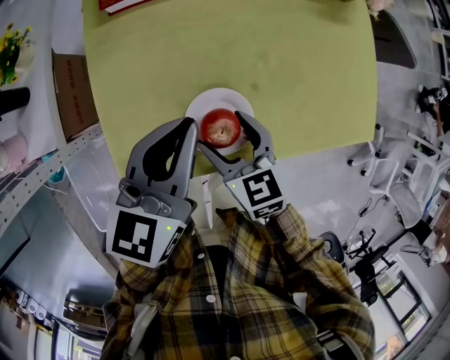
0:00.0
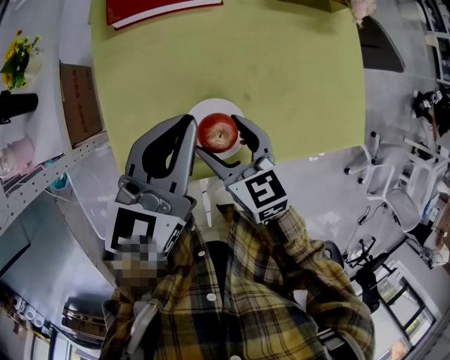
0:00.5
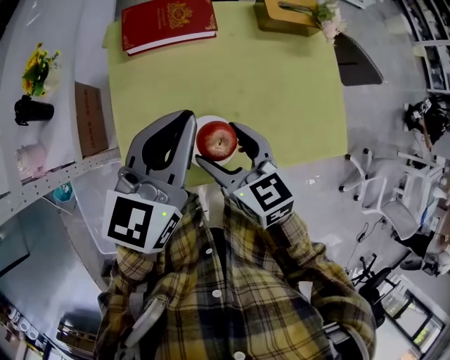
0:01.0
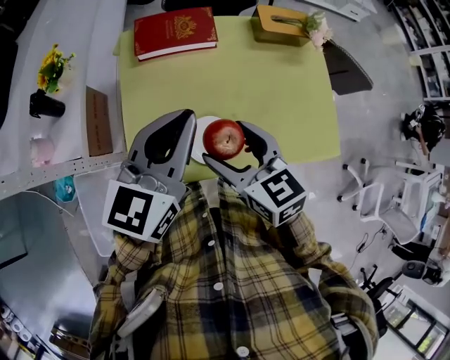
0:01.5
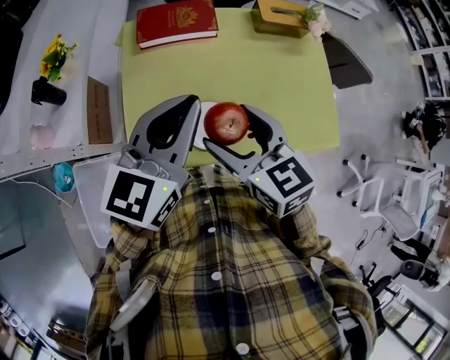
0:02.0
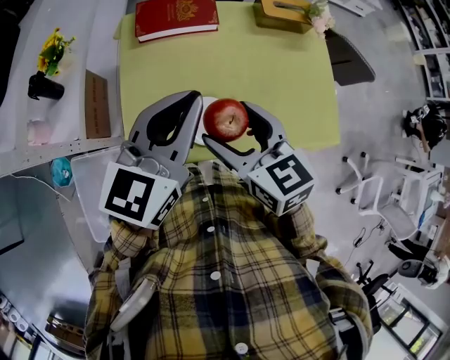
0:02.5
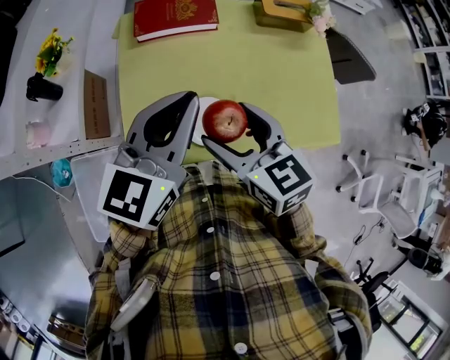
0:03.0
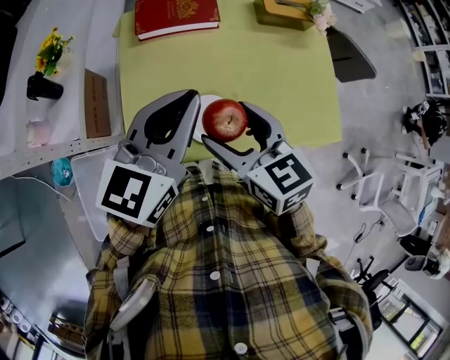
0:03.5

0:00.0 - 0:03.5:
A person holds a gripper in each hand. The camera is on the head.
0:00.0 - 0:02.0: Both grippers travel together upward, some 20 cm.
0:02.0 - 0:03.5: The grippers stay close to where they were, moving slightly.

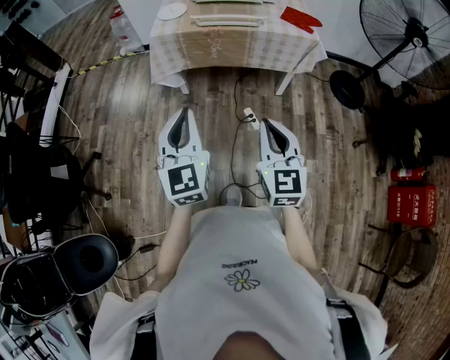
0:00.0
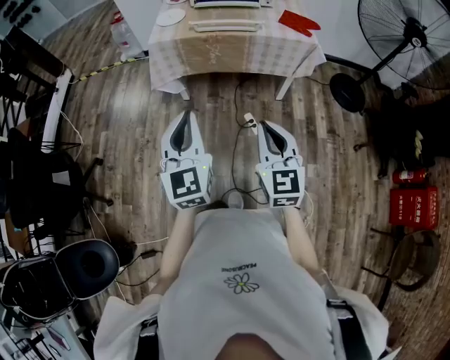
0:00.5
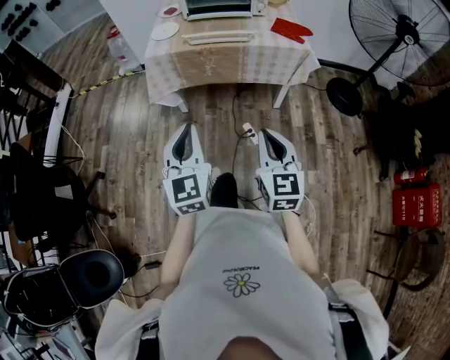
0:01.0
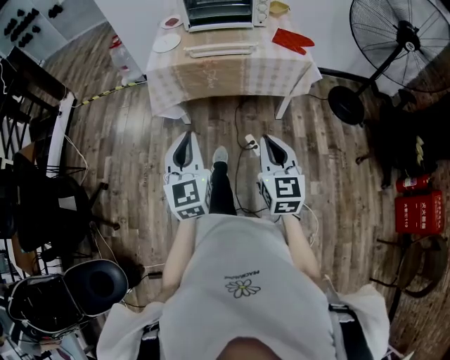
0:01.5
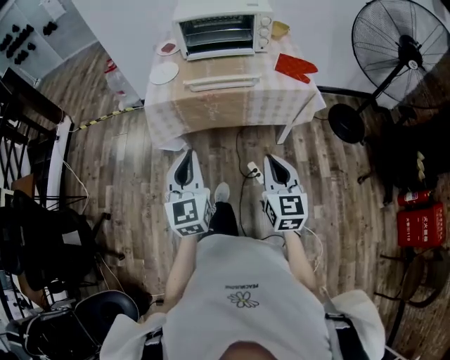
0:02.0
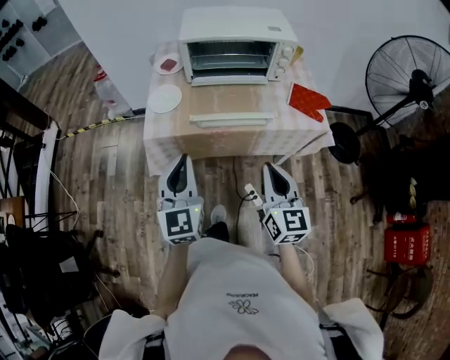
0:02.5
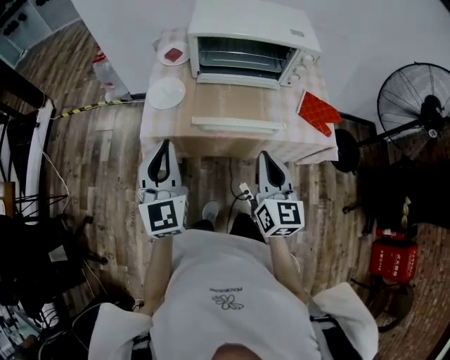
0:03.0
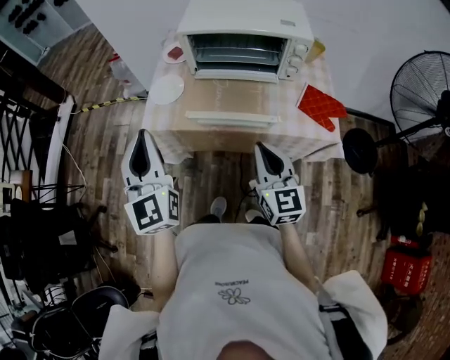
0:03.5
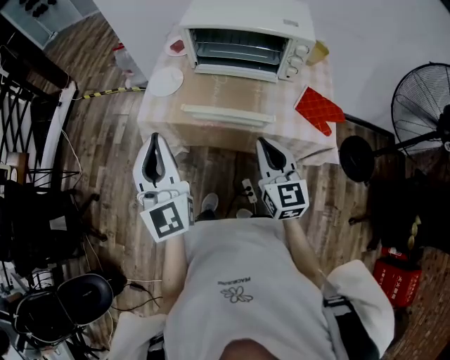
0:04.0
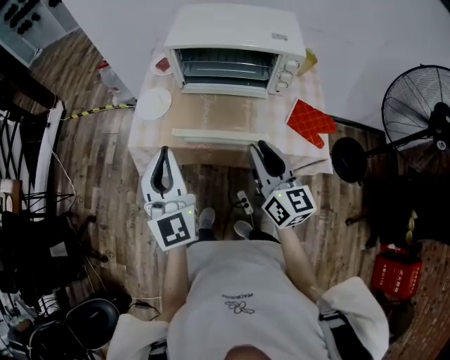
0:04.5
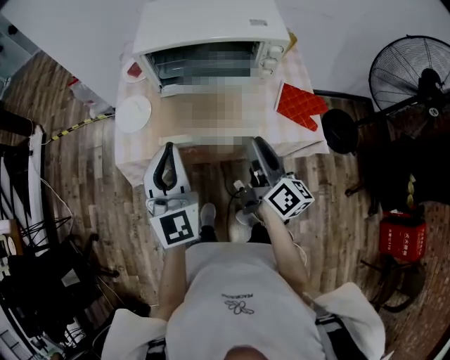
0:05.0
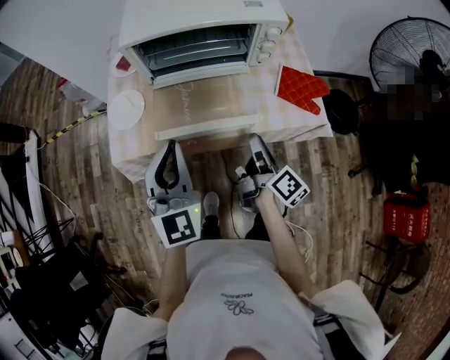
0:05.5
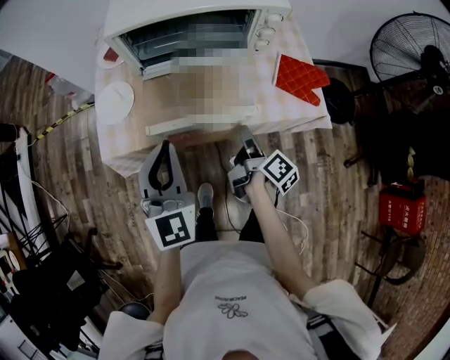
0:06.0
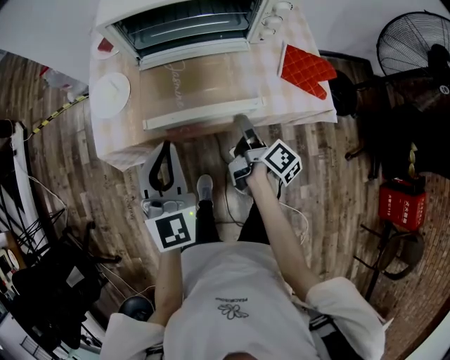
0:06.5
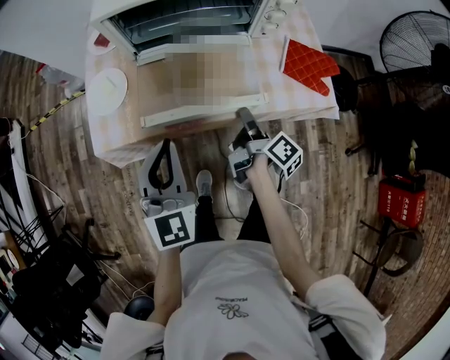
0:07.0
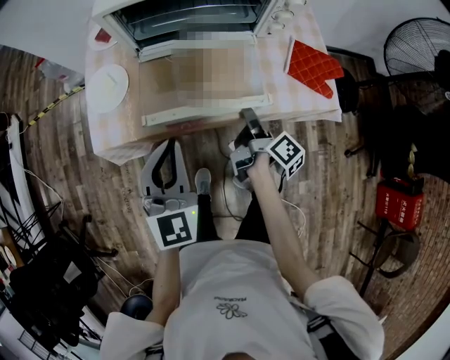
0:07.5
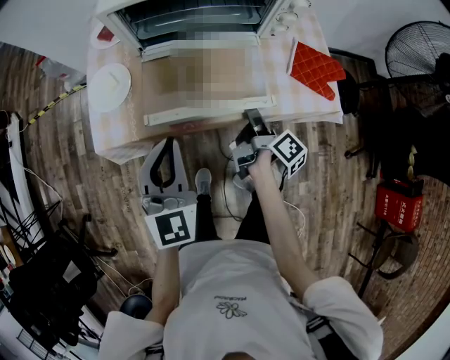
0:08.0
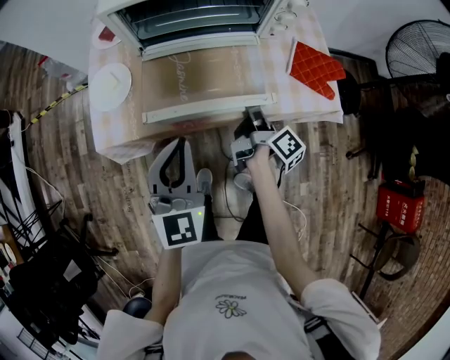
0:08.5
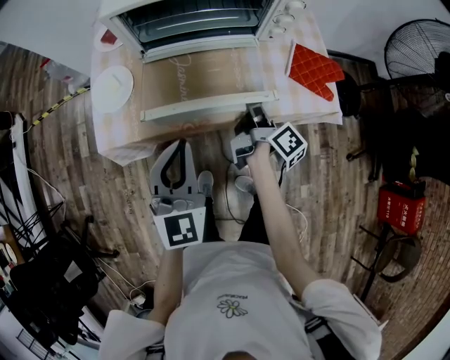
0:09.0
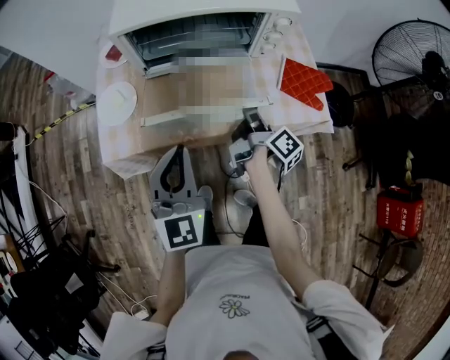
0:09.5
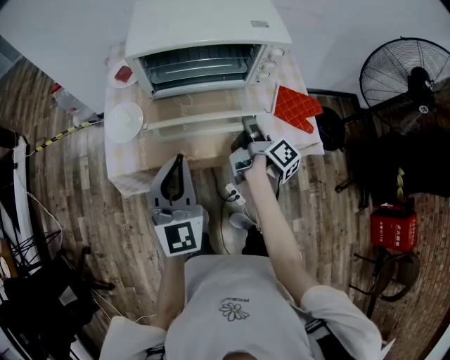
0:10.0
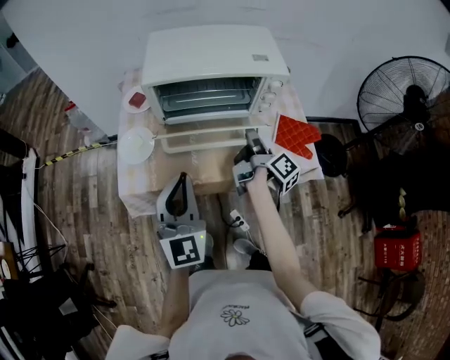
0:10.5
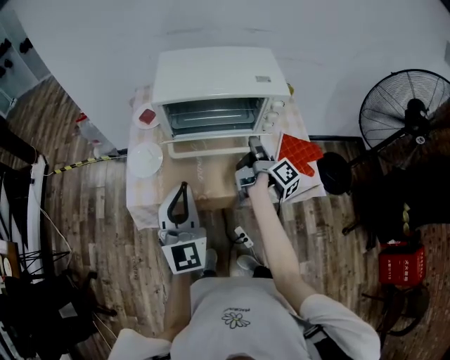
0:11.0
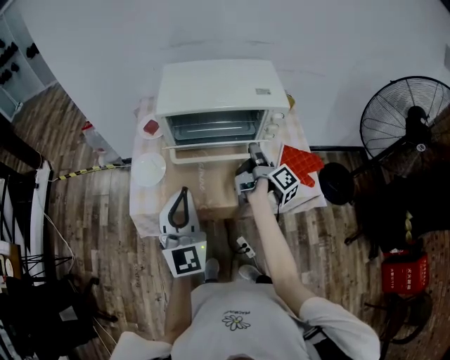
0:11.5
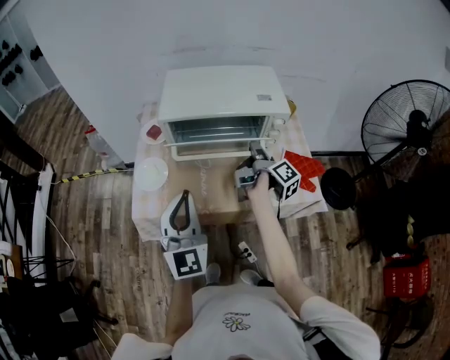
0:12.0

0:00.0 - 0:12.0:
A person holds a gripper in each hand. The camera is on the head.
0:00.0 - 0:02.0: The grippers both shift forward by some 15 cm.
0:02.0 - 0:04.0: The right gripper travels forward by roughly 25 cm. Meanwhile the left gripper is displaced forward and upward by approximately 25 cm, and rotates some 30 degrees.
0:04.0 - 0:06.0: The right gripper goes some 15 cm downward, rolls clockwise, seen from behind, by approximately 80 degrees, and opens its fingers, while the left gripper moves roughly 15 cm, and turns by some 30 degrees.
0:06.0 - 0:08.0: The left gripper shifts by some 5 cm. The right gripper changes place by about 5 cm.
0:08.0 - 0:10.0: The right gripper travels upward and forward by approximately 10 cm, while the left gripper shifts approximately 5 cm upward.
0:10.0 - 0:12.0: The left gripper moves upward, roughly 5 cm, while the right gripper moves upward and forward, about 10 cm.

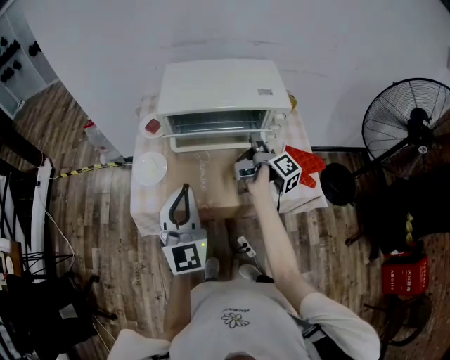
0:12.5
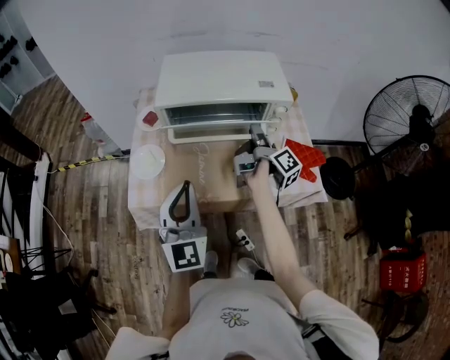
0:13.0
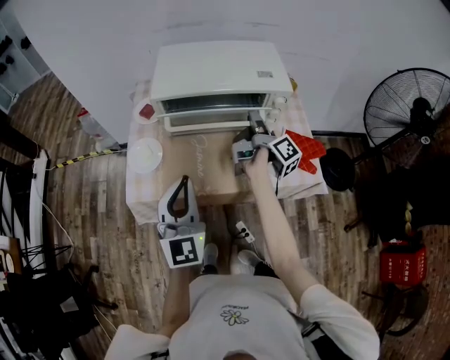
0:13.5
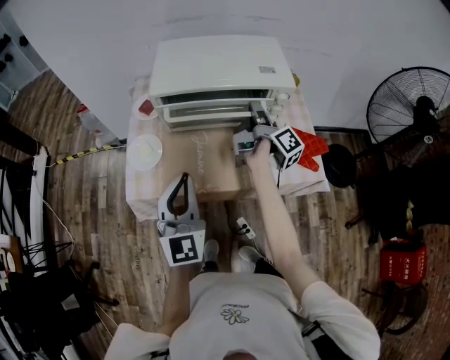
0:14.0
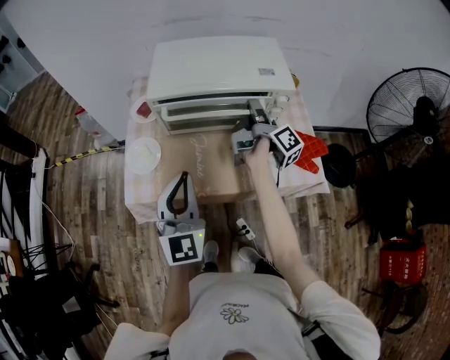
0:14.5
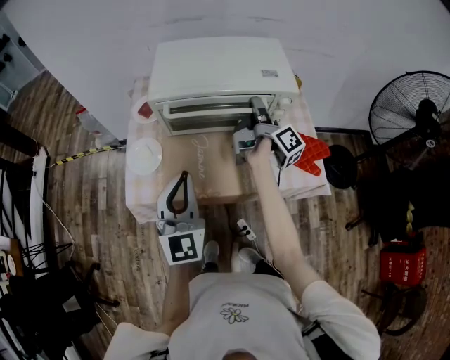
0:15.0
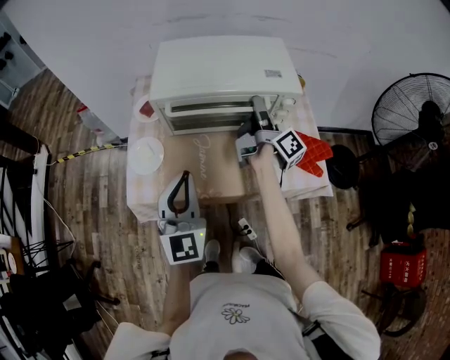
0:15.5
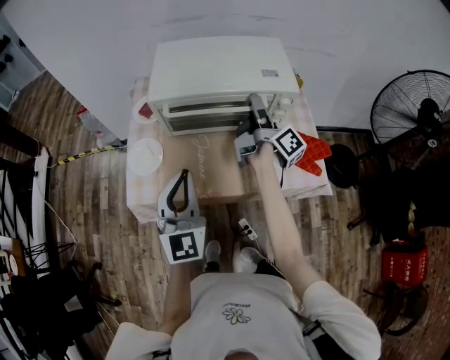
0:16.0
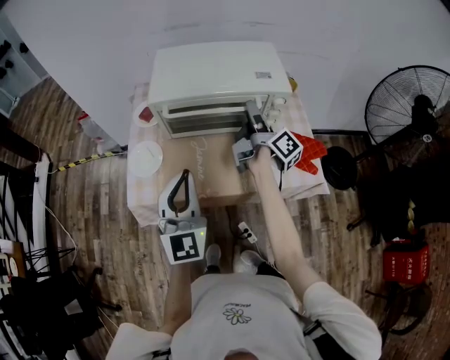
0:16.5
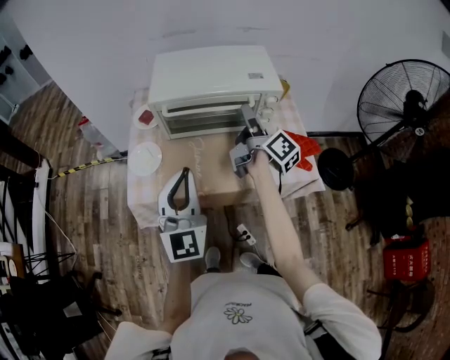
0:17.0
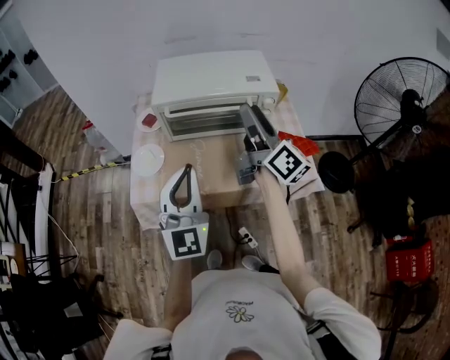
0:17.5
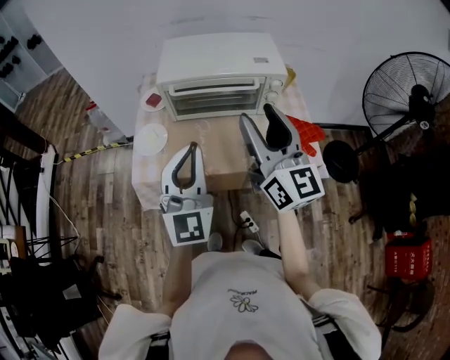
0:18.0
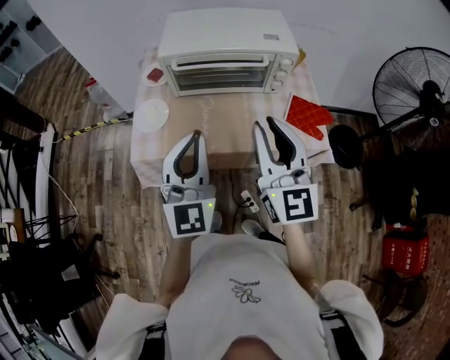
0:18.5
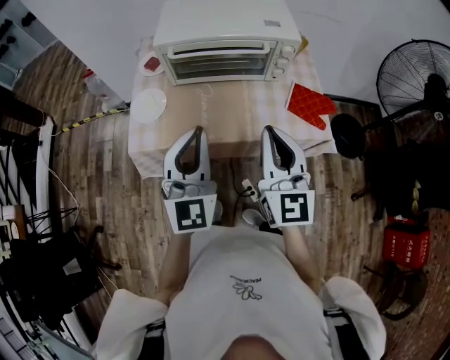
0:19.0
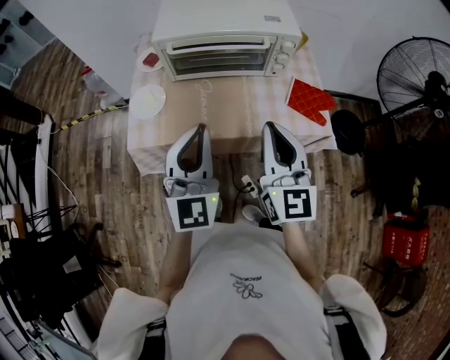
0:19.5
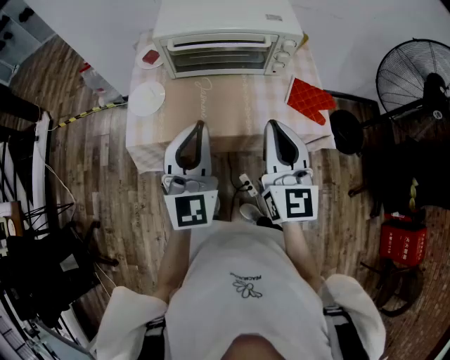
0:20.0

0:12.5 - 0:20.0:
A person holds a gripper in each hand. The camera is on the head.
0:12.5 - 0:14.5: The right gripper shifts by roughly 5 cm.
0:14.5 - 0:16.5: The right gripper opens its fingers.
0:16.5 - 0:18.0: The right gripper shifts roughly 25 cm backward and upward, and twists some 70 degrees counterclockwise, seen from behind. The left gripper shifts roughly 10 cm backward and upward.
0:18.0 - 0:20.0: The right gripper shifts approximately 10 cm downward and backward, and closes its fingers; the left gripper heads downward, covering some 5 cm.

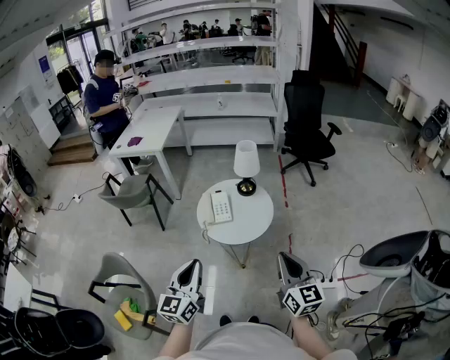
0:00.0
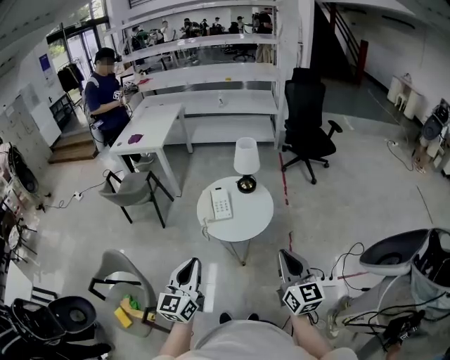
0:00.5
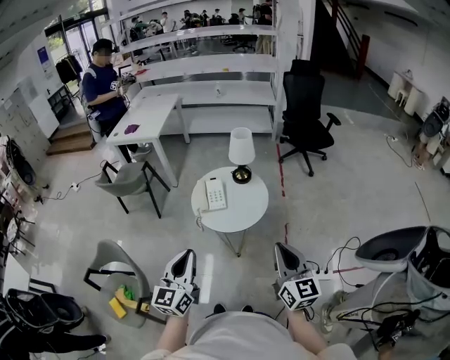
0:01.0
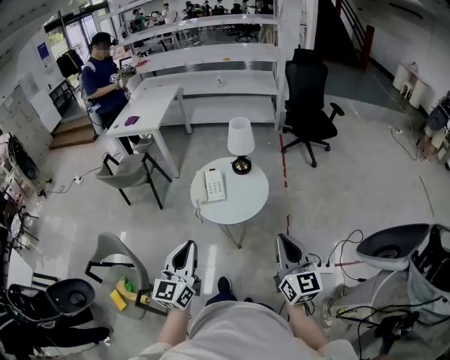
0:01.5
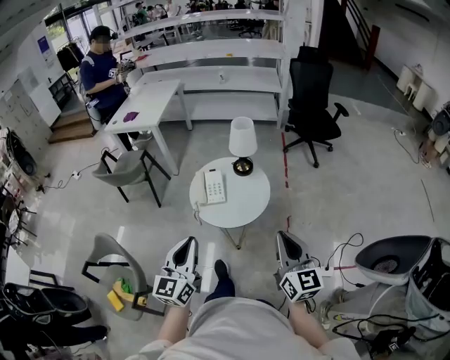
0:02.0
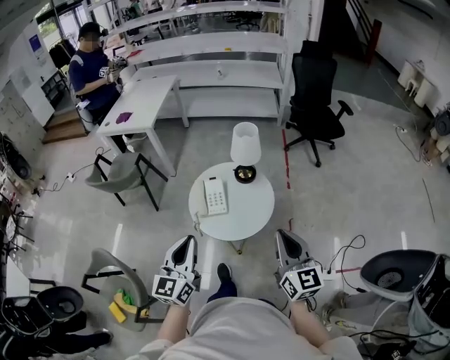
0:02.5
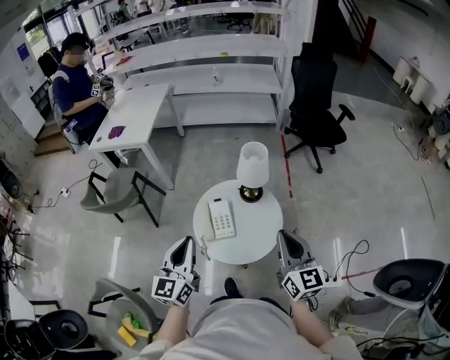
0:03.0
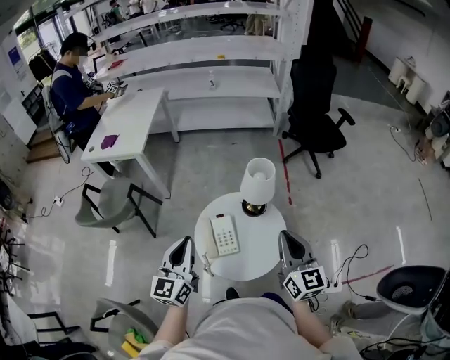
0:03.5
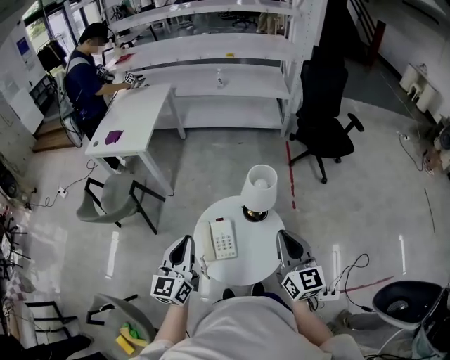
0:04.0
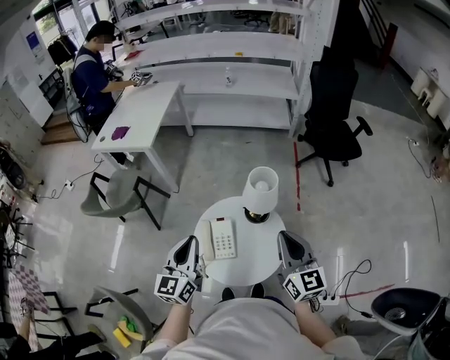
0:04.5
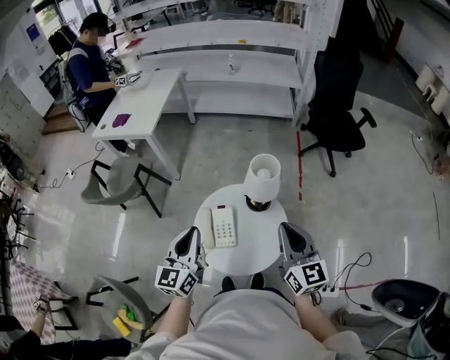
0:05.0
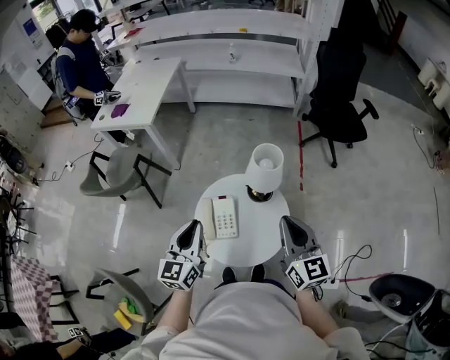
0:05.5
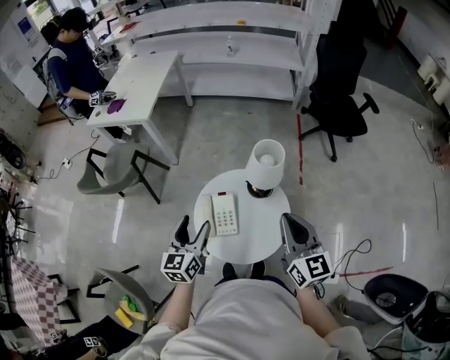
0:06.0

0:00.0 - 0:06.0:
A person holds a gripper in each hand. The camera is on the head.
0:00.0 - 0:02.0: The left gripper changes place by about 5 cm; the right gripper heads forward, covering some 5 cm.
0:02.0 - 0:04.0: The two grippers go some 35 cm forward.
0:04.0 - 0:06.0: The left gripper heads downward, covering approximately 10 cm, and opens its fingers.
